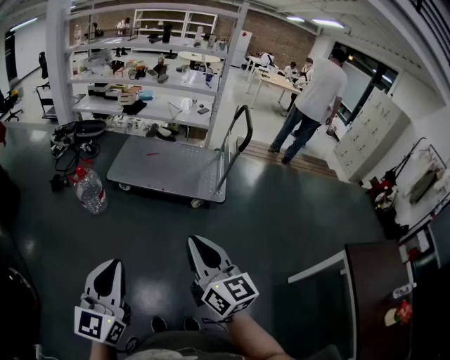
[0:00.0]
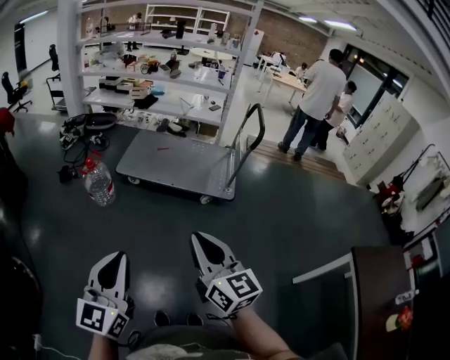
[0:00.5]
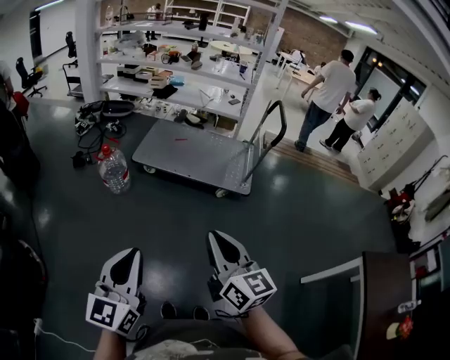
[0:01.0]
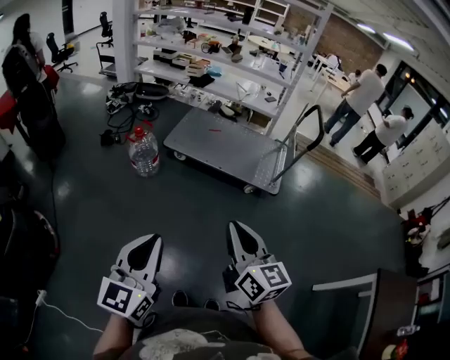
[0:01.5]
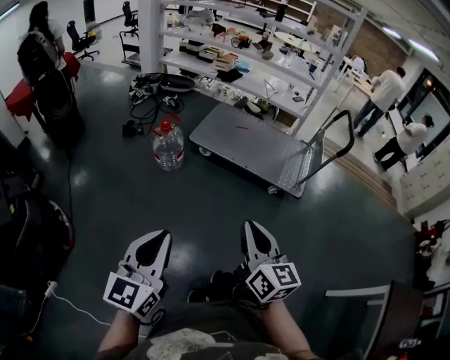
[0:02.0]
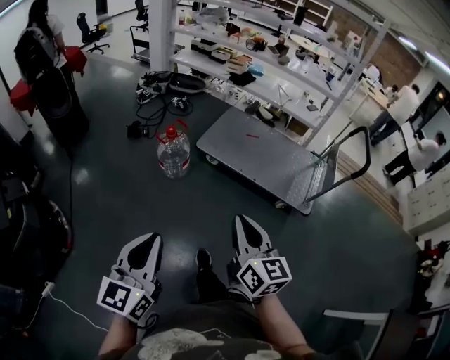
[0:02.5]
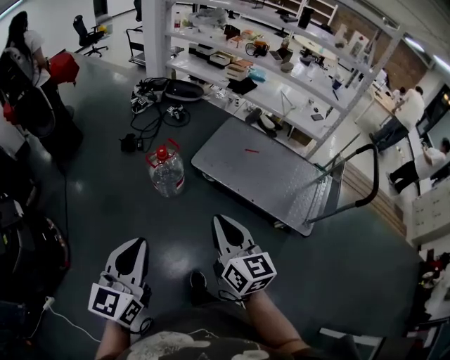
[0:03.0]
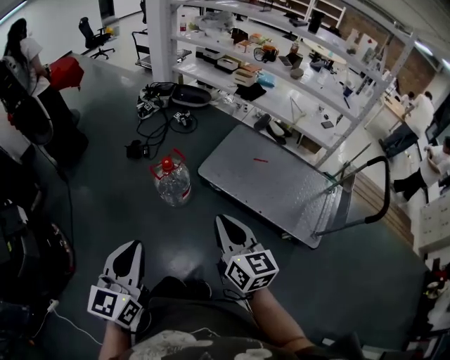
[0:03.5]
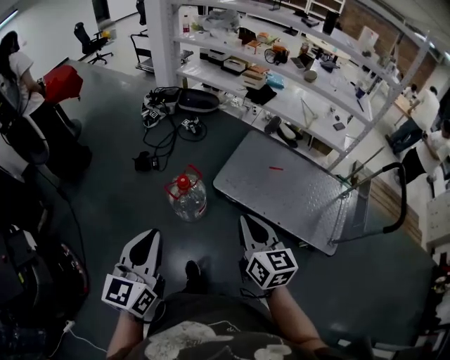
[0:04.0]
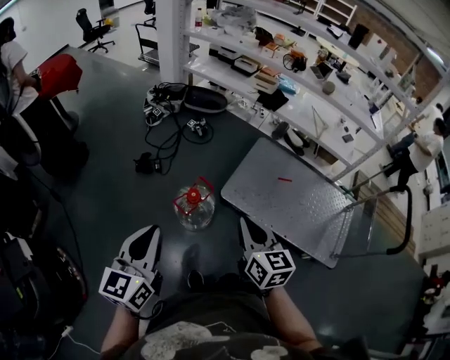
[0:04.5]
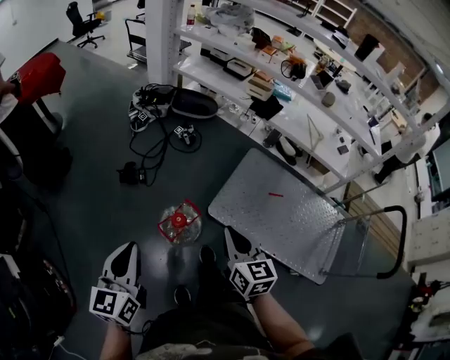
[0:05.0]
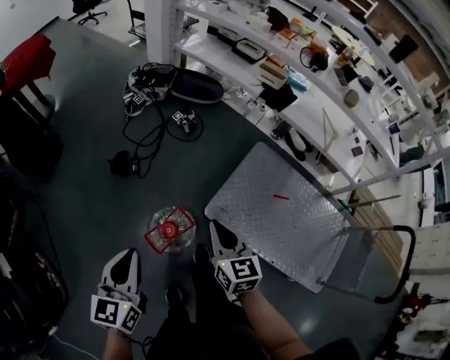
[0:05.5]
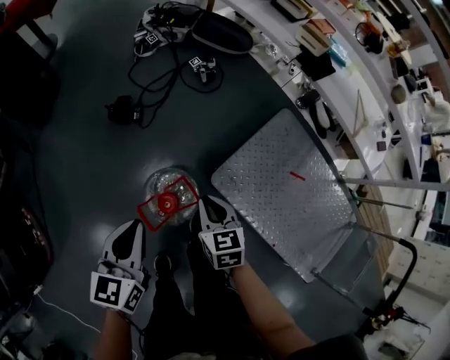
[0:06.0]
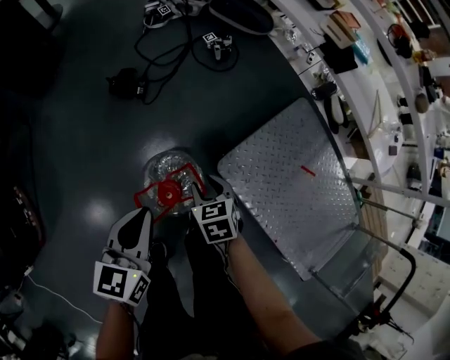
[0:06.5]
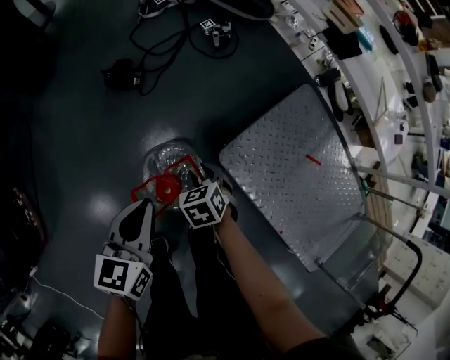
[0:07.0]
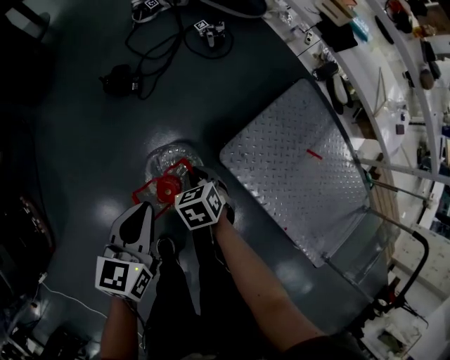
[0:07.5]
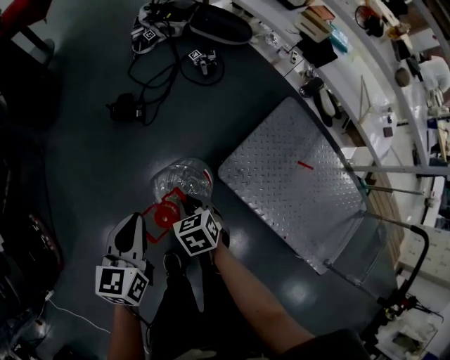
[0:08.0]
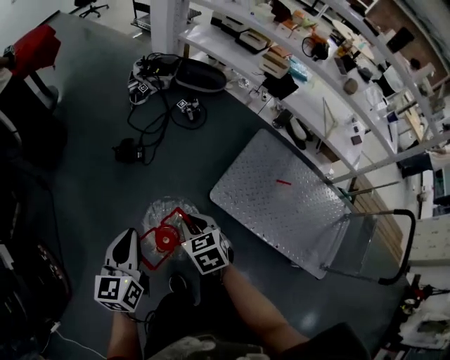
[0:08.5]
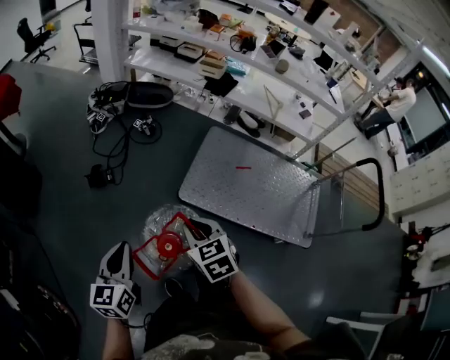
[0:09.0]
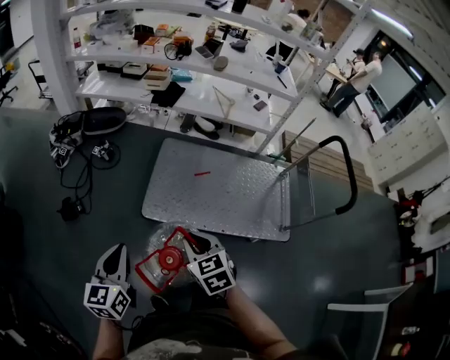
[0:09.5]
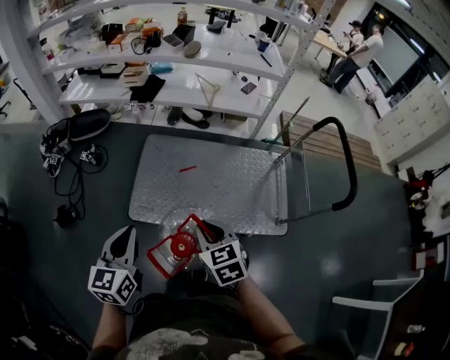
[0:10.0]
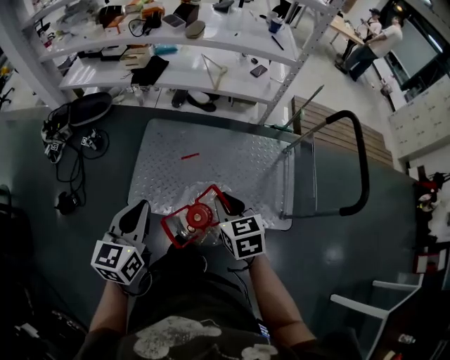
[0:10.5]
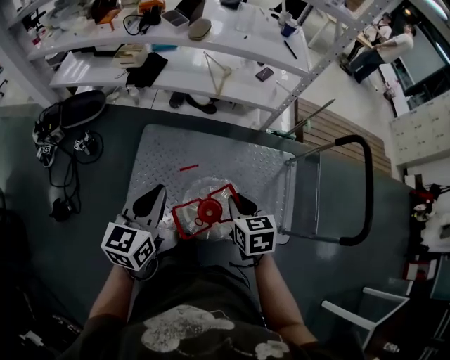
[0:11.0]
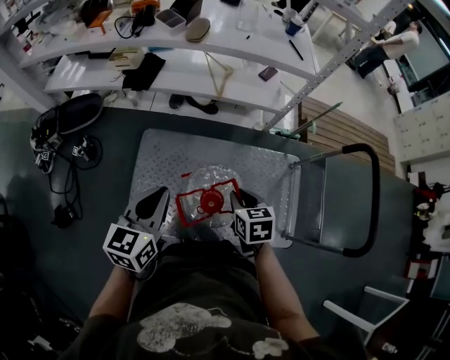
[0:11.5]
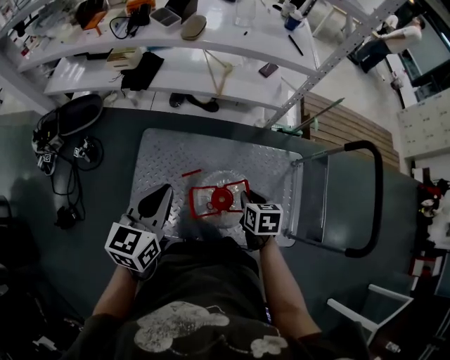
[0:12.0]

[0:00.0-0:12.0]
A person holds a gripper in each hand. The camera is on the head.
0:00.0 to 0:02.0: The right gripper heads to the left and downward, covering approximately 20 cm. The left gripper travels to the left by roughly 20 cm.
0:02.0 to 0:04.0: Both grippers are carried forward, roughly 50 cm.
0:04.0 to 0:06.0: Both grippers travel together forward and downward, approximately 50 cm. The right gripper angles its fingers downward, by some 30 degrees, while the left gripper turns by about 30 degrees.
0:06.0 to 0:08.0: The right gripper moves downward and to the left, roughly 10 cm, turns by some 20 degrees, and opens and closes again.
0:08.0 to 0:10.0: Both grippers are carried some 50 cm. The left gripper changes its angle by approximately 40 degrees. The right gripper changes its angle by roughly 40 degrees.
0:10.0 to 0:12.0: The left gripper heads forward, covering some 35 cm. The right gripper heads forward, to the right and downward, covering about 40 cm, and rotates roughly 30 degrees.

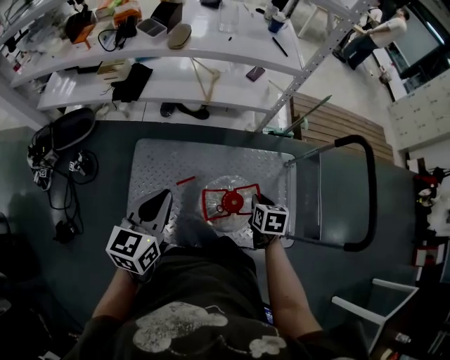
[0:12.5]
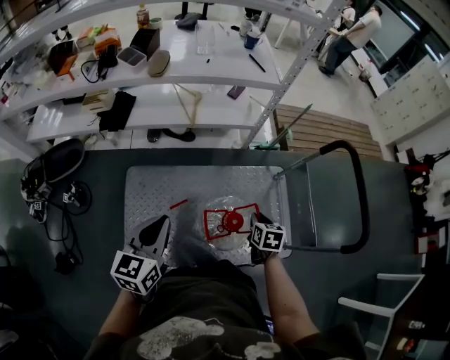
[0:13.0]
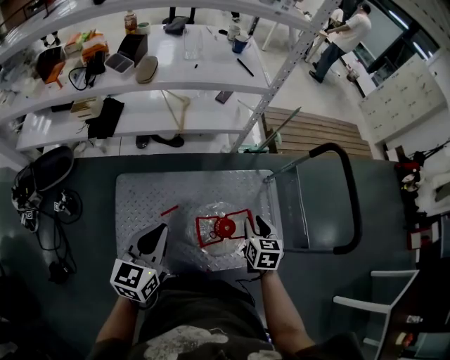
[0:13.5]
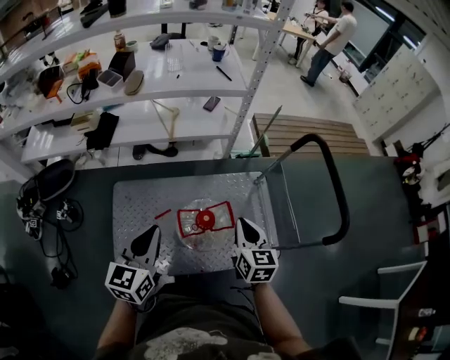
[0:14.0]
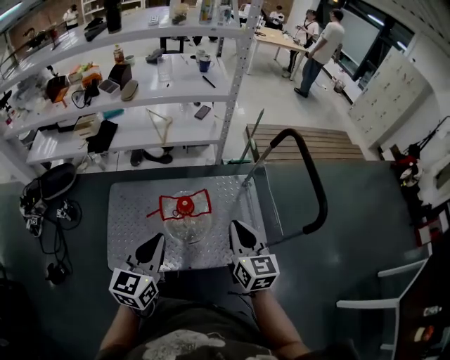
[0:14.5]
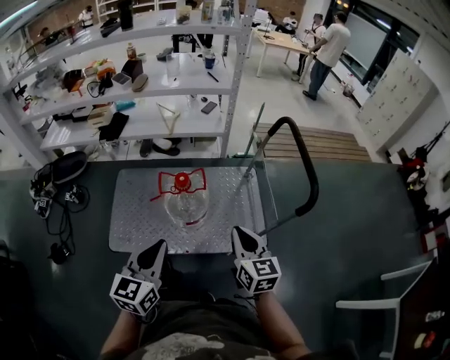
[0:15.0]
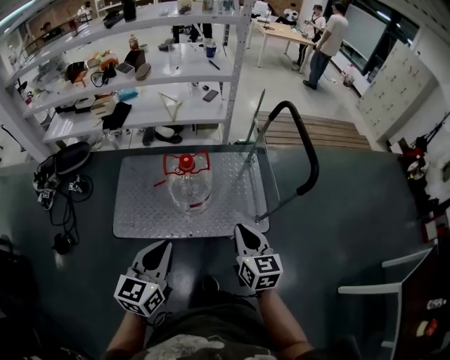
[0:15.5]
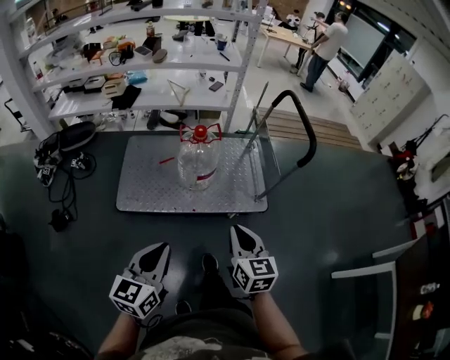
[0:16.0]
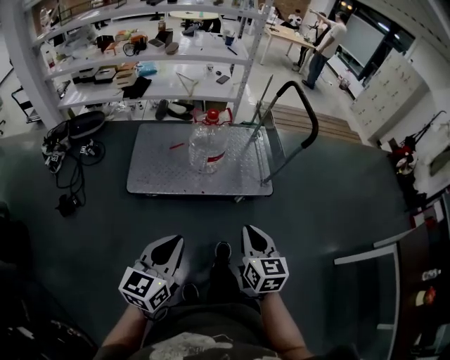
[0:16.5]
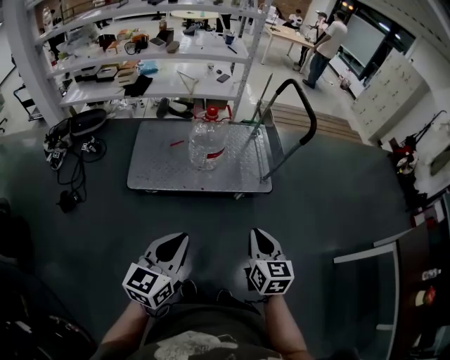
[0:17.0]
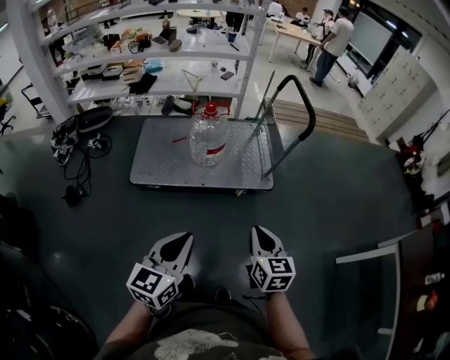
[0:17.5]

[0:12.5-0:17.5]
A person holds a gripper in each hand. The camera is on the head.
0:12.5 to 0:15.0: The right gripper shifts about 40 cm backward, upward and to the right, and angles its fingers upward, by about 40 degrees, while the left gripper is displaced backward and to the right by some 40 cm.
0:15.0 to 0:17.5: Both grippers are carried backward, roughly 40 cm.

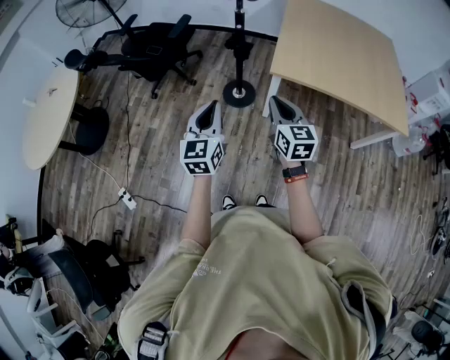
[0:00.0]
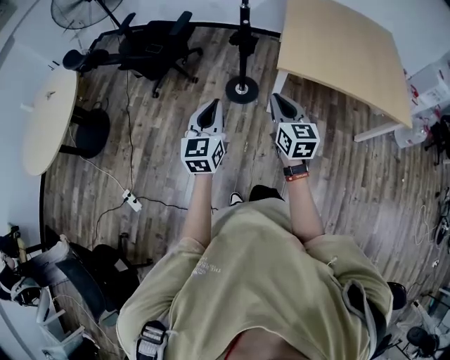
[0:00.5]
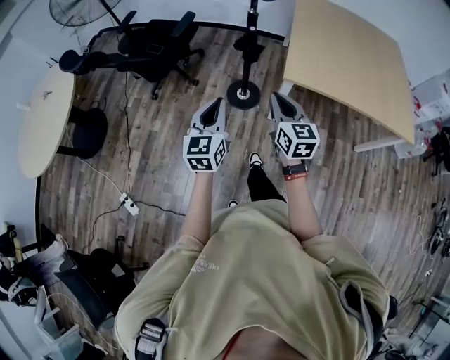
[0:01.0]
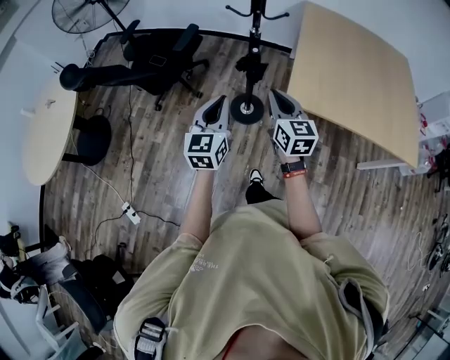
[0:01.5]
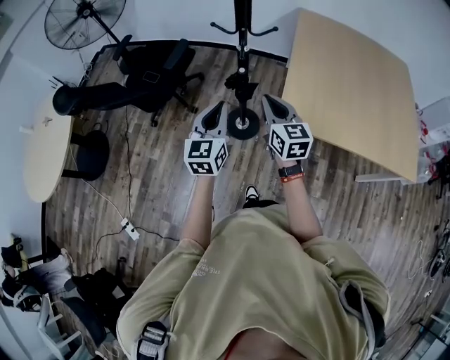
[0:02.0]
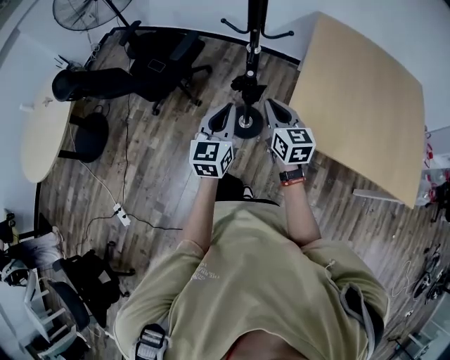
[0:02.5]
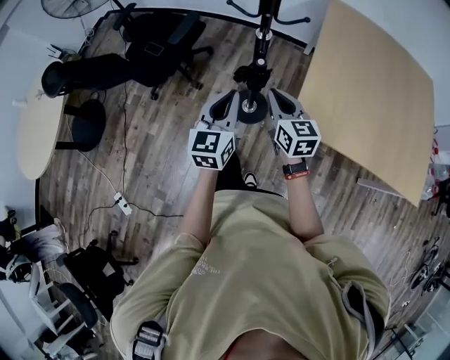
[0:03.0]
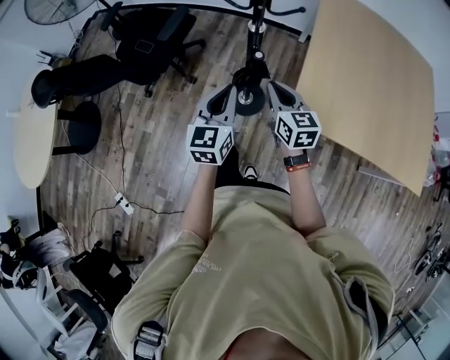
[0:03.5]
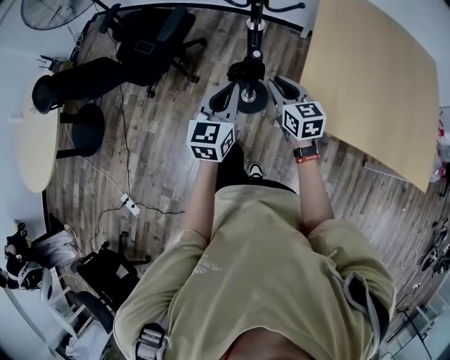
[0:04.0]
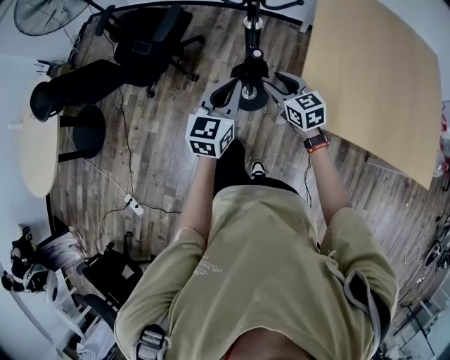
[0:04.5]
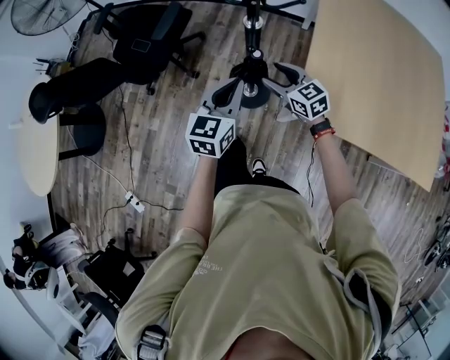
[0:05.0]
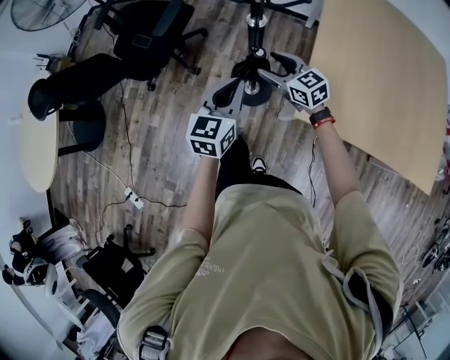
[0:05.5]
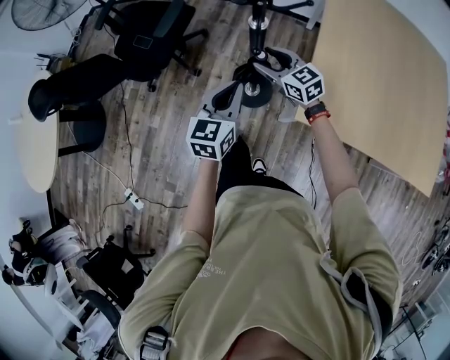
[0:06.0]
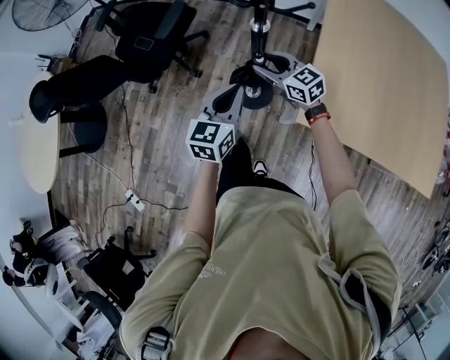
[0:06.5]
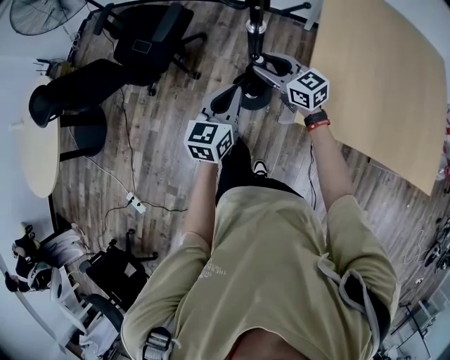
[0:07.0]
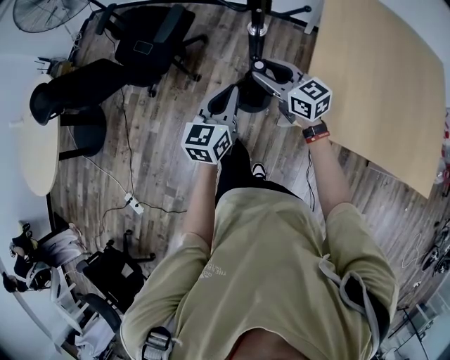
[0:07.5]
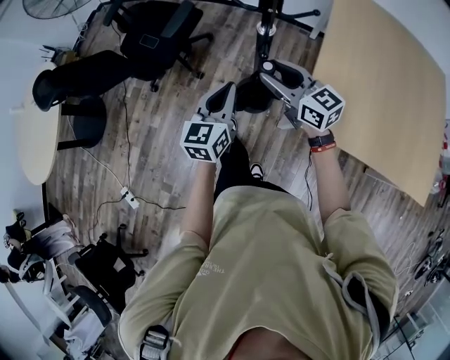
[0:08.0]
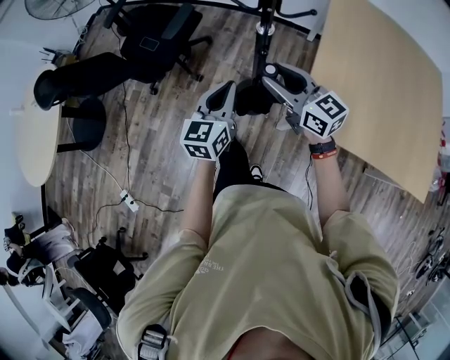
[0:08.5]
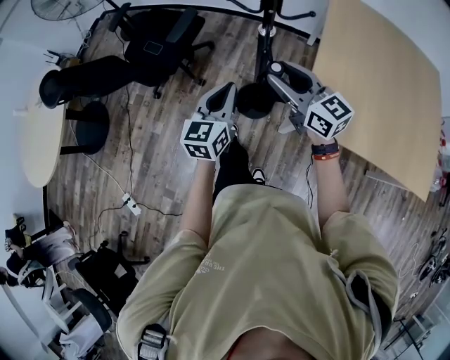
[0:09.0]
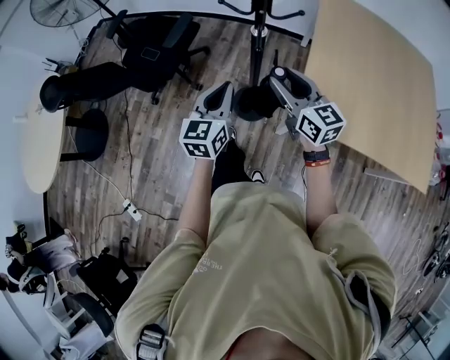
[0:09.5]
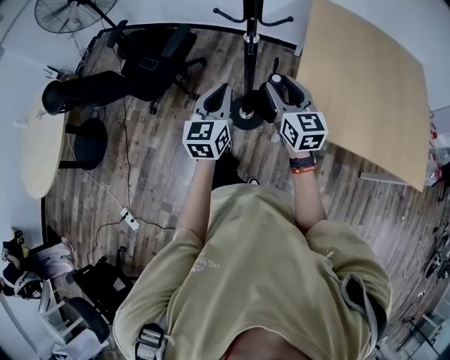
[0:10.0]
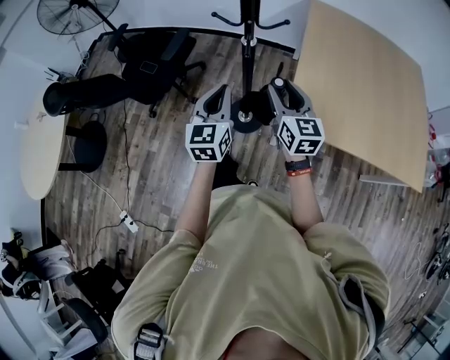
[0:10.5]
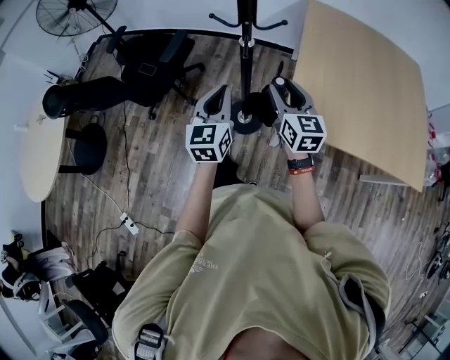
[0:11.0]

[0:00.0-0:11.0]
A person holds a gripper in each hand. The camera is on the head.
0:00.0 to 0:02.0: The grippers both shift forward by some 35 cm.
0:02.0 to 0:03.5: Both grippers move forward and downward, roughly 15 cm.
0:03.5 to 0:05.5: The right gripper shifts approximately 15 cm forward and downward, turns by about 30 degrees, and opens up; the left gripper is displaced forward by about 5 cm.
0:05.5 to 0:07.5: The right gripper heads upward, covering some 5 cm.
0:07.5 to 0:09.0: The left gripper goes some 5 cm to the left; the right gripper moves upward and backward, approximately 15 cm.
0:09.0 to 0:11.0: The right gripper moves to the right and backward, approximately 10 cm, and rotates approximately 30 degrees, while the left gripper moves upward, about 5 cm.
